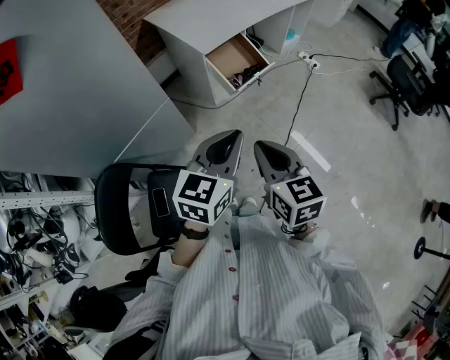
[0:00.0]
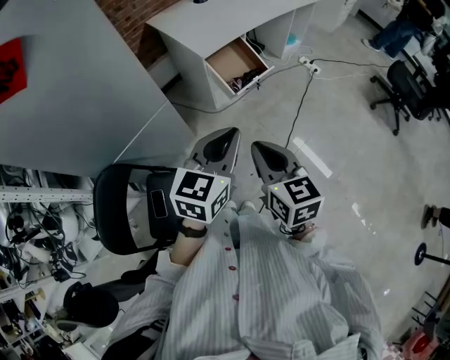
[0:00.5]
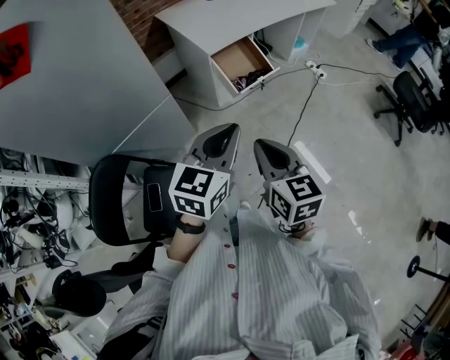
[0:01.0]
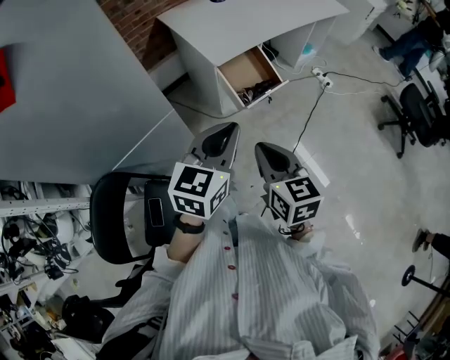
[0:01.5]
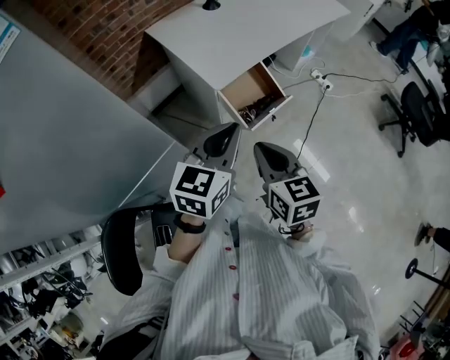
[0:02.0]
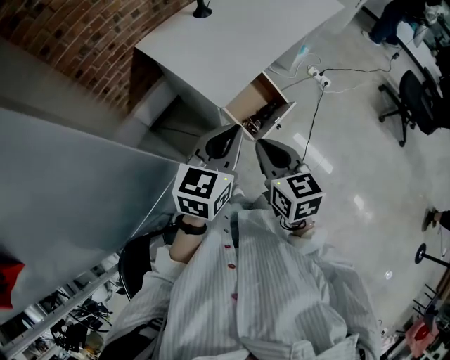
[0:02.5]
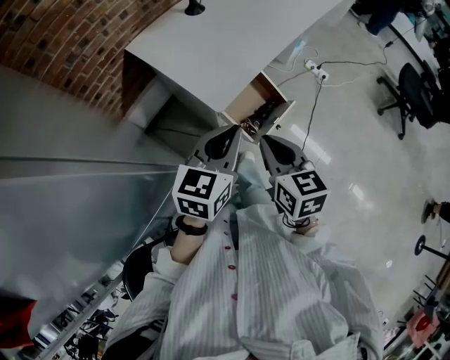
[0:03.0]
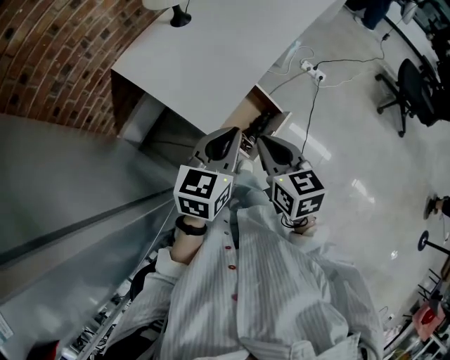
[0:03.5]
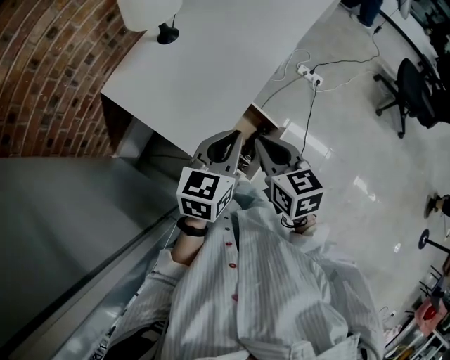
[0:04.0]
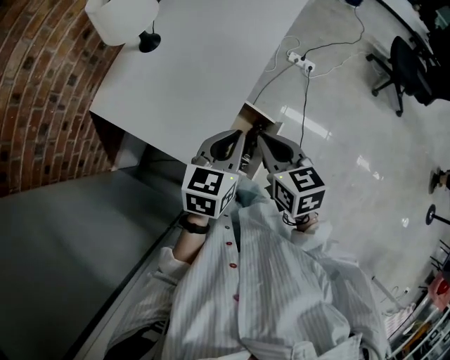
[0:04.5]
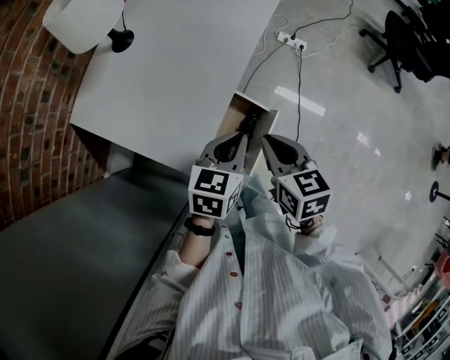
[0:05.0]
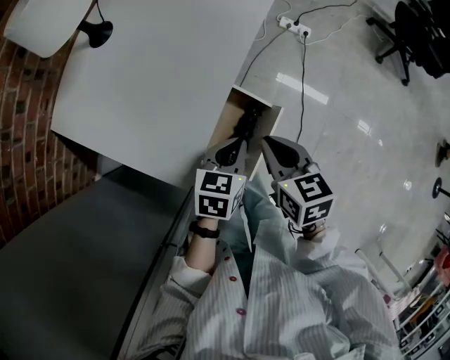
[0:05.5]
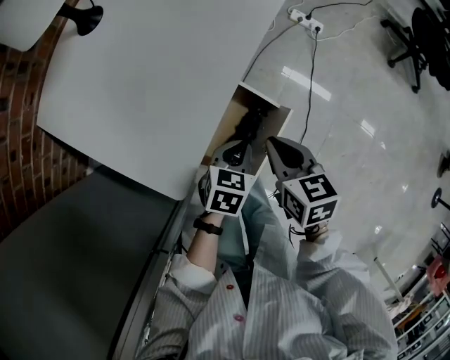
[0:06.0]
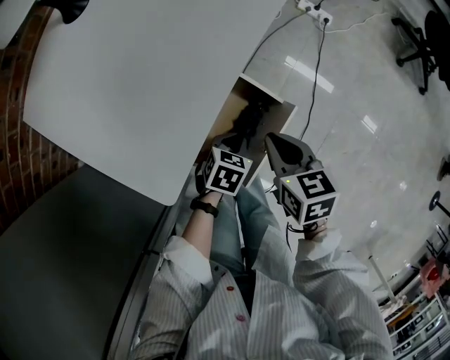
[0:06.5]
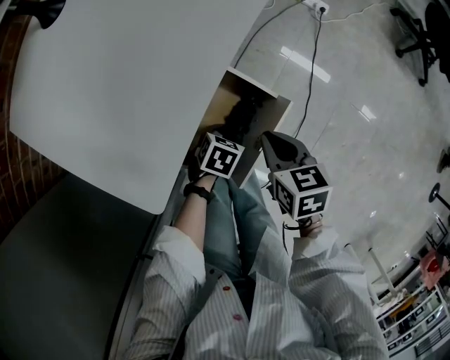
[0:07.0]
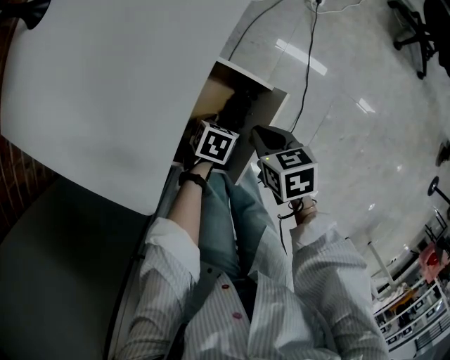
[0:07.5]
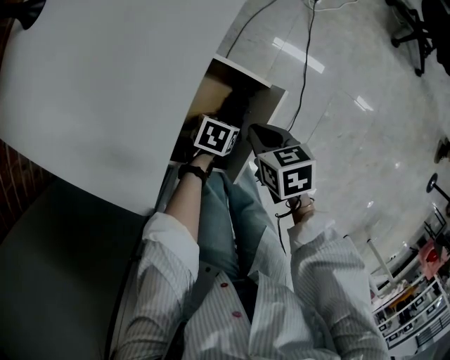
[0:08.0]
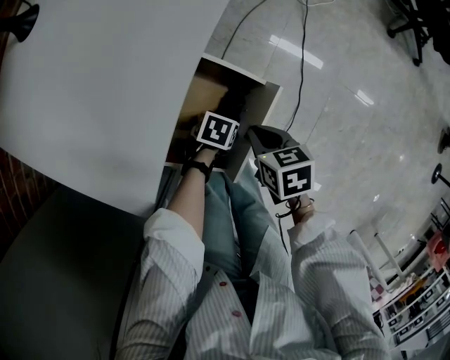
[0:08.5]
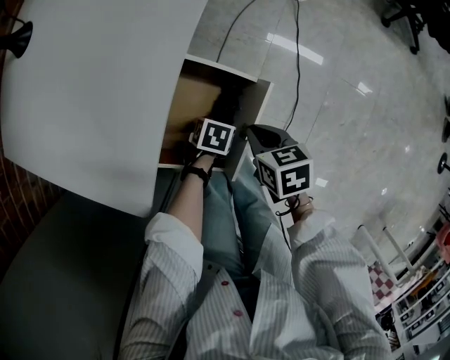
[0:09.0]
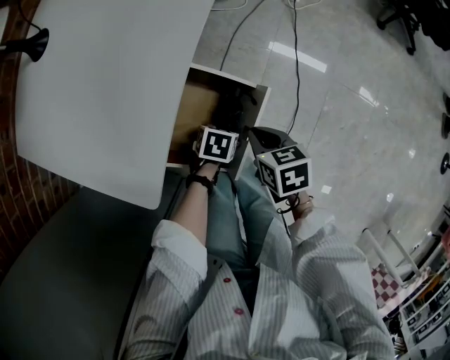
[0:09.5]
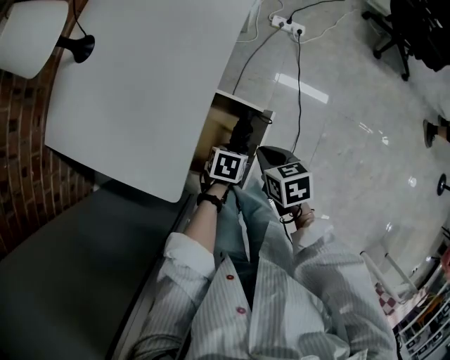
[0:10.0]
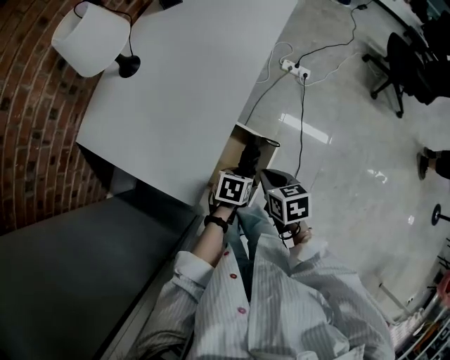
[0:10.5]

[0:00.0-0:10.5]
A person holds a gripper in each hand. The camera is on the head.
0.0 to 2.0 s: The grippers both shift forward by approximately 25 cm.
2.0 to 4.0 s: Both grippers move forward, some 30 cm.
4.0 to 6.5 s: The left gripper shifts about 40 cm downward, and tips its fingers downward by about 40 degrees; the right gripper heads downward, covering approximately 30 cm, and rotates approximately 20 degrees.
6.5 to 8.5 s: The two grippers go some 10 cm downward. The left gripper opens.
8.5 to 10.5 s: Both grippers move upward, about 25 cm.

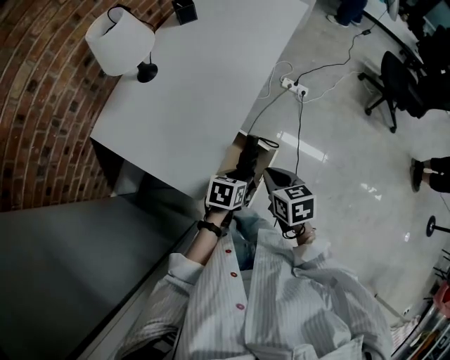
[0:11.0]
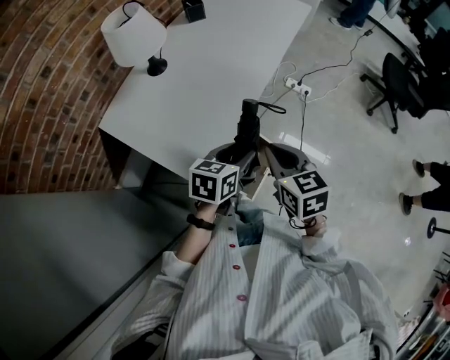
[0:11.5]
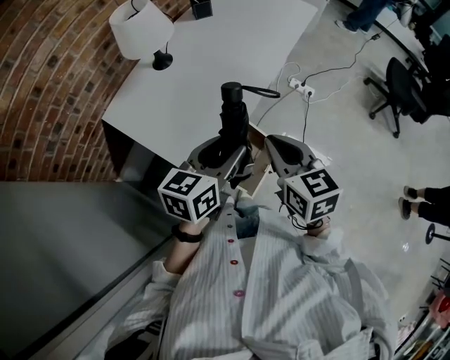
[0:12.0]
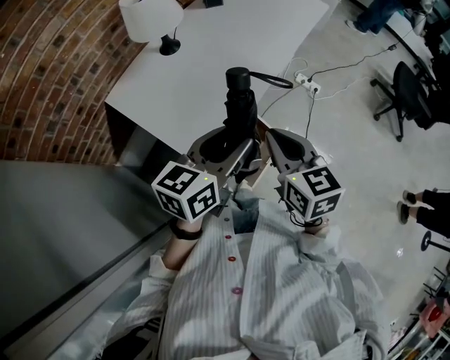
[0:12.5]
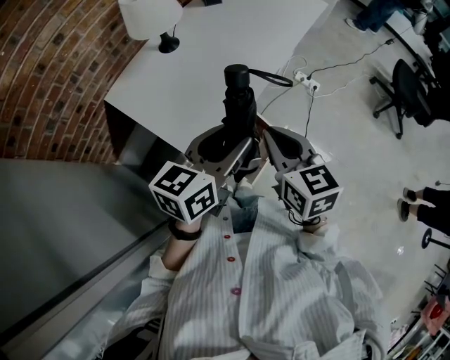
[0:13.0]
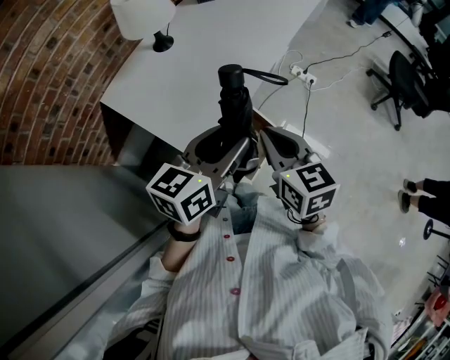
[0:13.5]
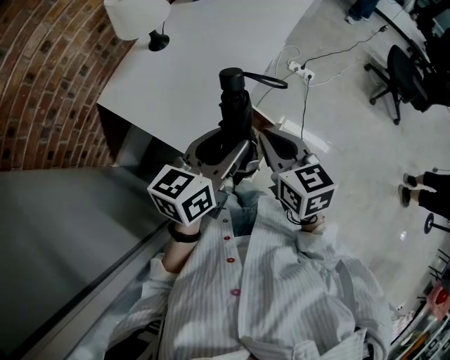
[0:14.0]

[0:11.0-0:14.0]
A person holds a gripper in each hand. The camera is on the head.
11.0 to 12.5 s: The left gripper heads upward, covering about 25 cm, and points its fingers about 40 degrees further upward. The right gripper heads upward, covering roughly 15 cm, and turns by roughly 20 degrees.
12.5 to 14.0 s: The grippers stay close to where they were, moving slightly.

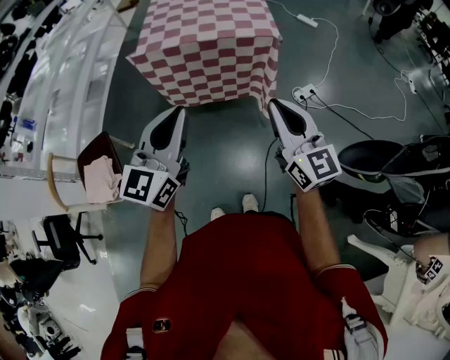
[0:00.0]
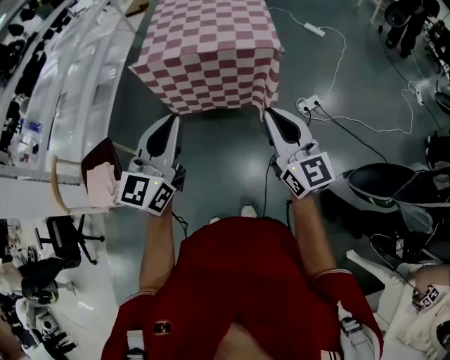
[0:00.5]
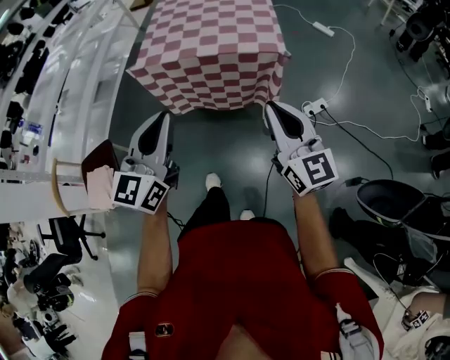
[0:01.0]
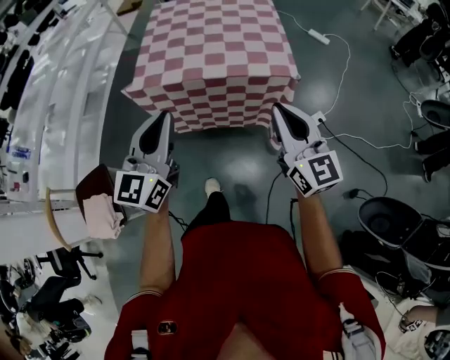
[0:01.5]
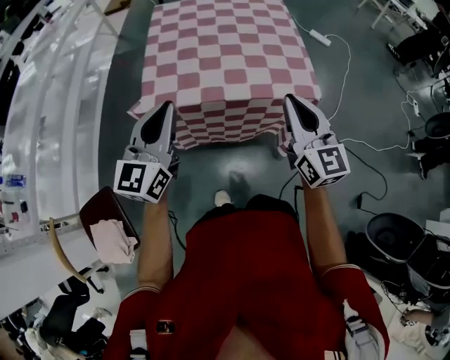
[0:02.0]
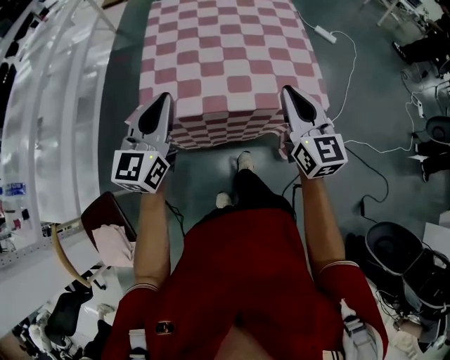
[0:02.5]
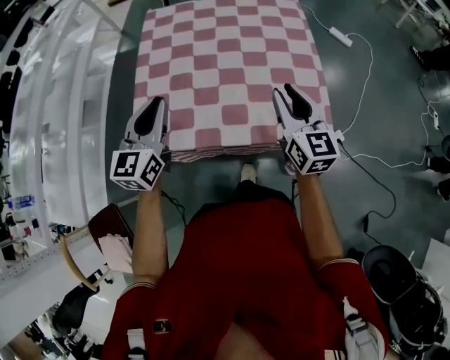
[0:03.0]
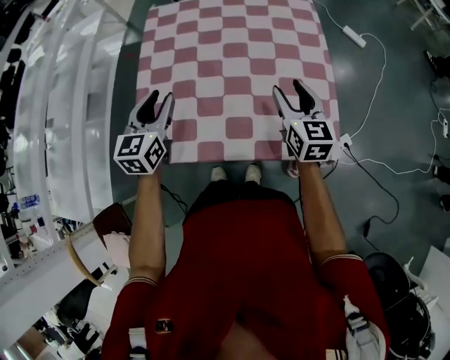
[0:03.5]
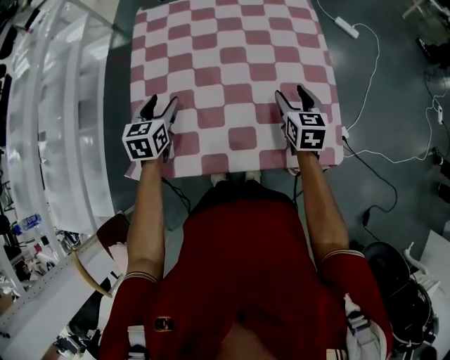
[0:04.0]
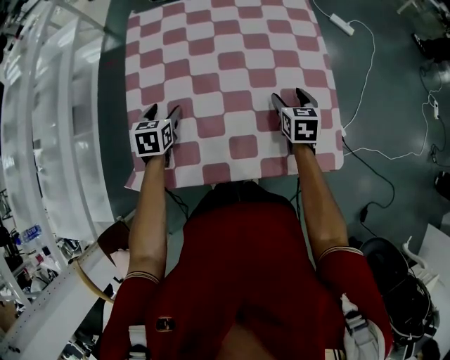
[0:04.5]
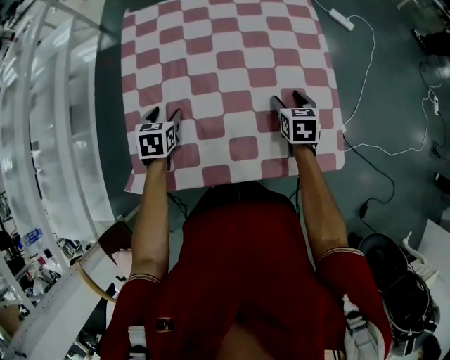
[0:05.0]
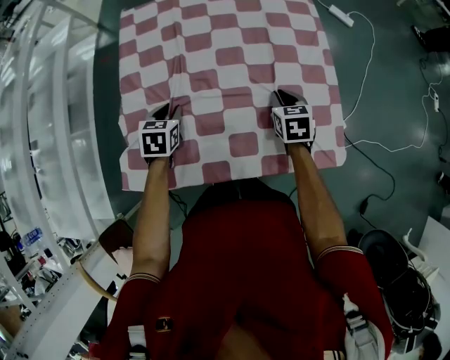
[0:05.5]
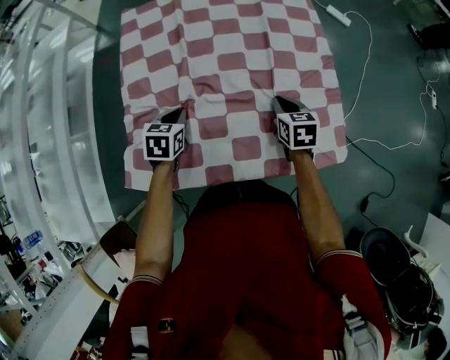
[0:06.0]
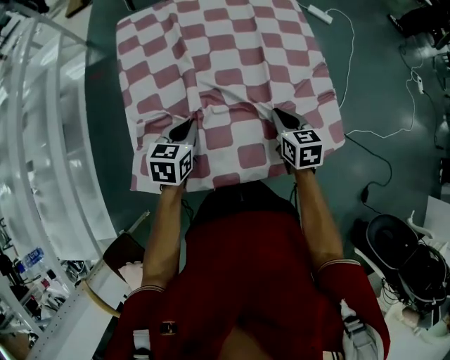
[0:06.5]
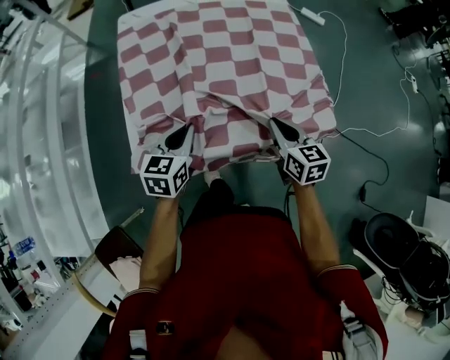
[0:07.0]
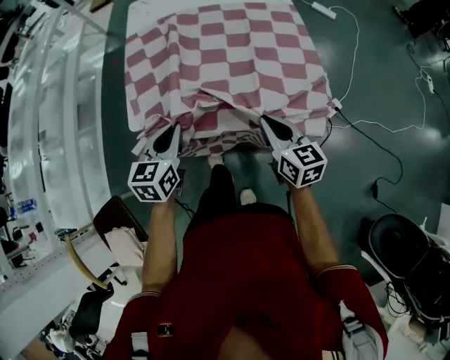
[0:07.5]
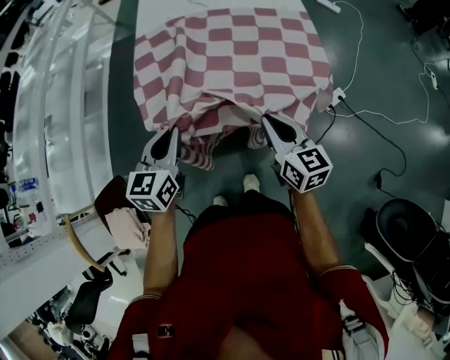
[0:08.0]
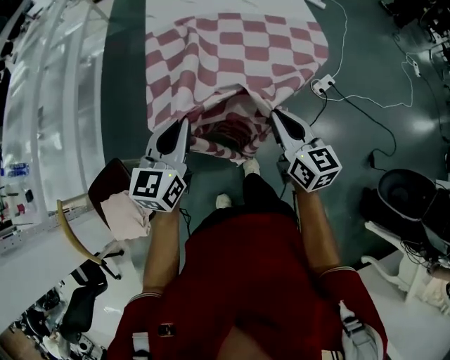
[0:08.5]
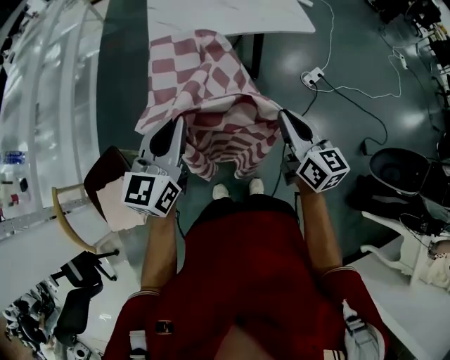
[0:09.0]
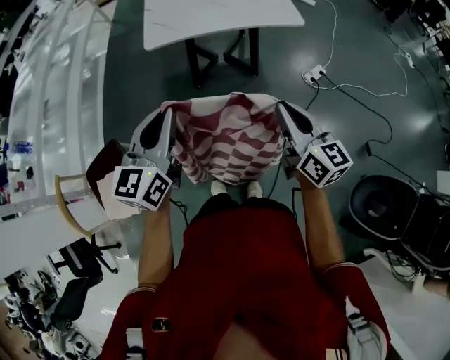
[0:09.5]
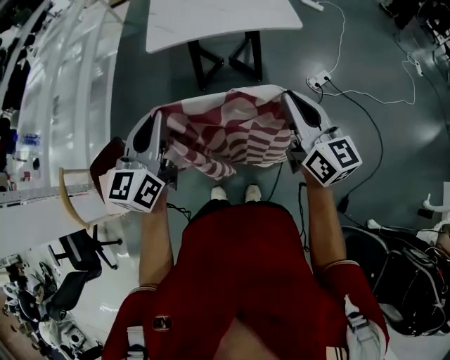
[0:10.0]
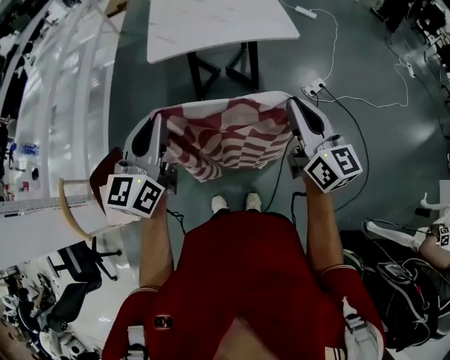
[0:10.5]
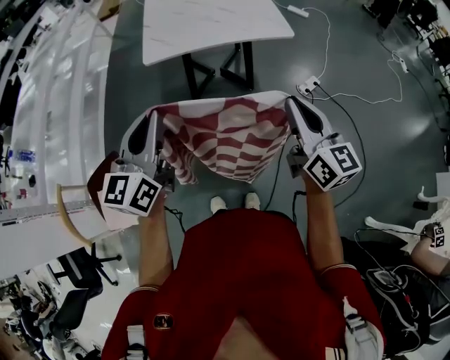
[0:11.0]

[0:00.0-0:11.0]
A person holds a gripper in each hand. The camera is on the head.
0.0 to 2.0 s: The grippers both shift forward by about 35 cm.
2.0 to 3.5 s: The left gripper shifts approximately 30 cm forward, turns by approximately 30 degrees, and opens, while the right gripper goes about 35 cm forward and downward, rotates some 20 degrees, and opens its fingers.
3.5 to 5.5 s: The grippers both shift downward by approximately 15 cm. The right gripper points its fingers some 30 degrees further downward, and closes its fingers, while the left gripper angles its fingers downward, by approximately 30 degrees, and opens and closes again.
5.5 to 7.5 s: The right gripper heads backward, covering approximately 30 cm, and tips its fingers upward by some 30 degrees; the left gripper travels backward and upward by some 30 cm, and changes its angle by approximately 30 degrees.
7.5 to 9.0 s: The right gripper goes about 30 cm backward. The left gripper goes about 35 cm backward and upward, and turns by approximately 20 degrees.
9.0 to 11.0 s: The right gripper goes approximately 15 cm upward and to the right, while the left gripper shifts roughly 10 cm upward.

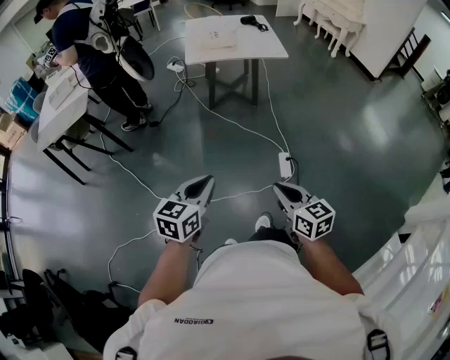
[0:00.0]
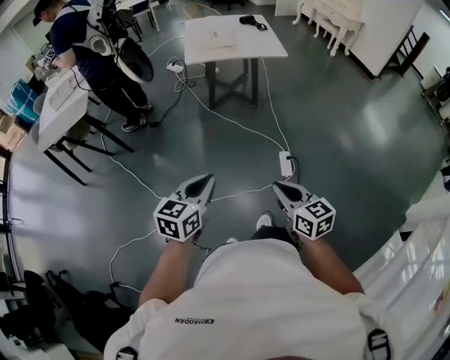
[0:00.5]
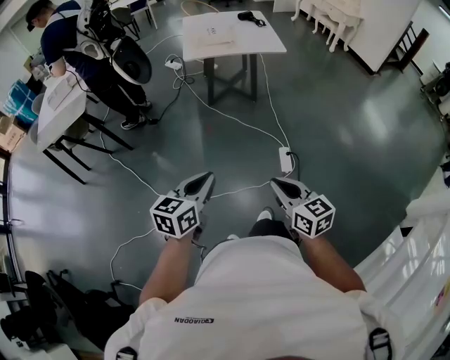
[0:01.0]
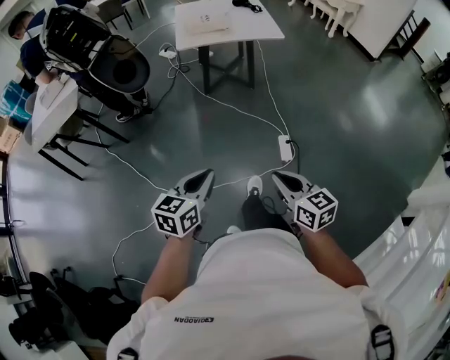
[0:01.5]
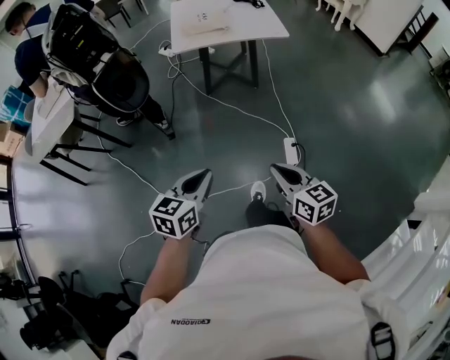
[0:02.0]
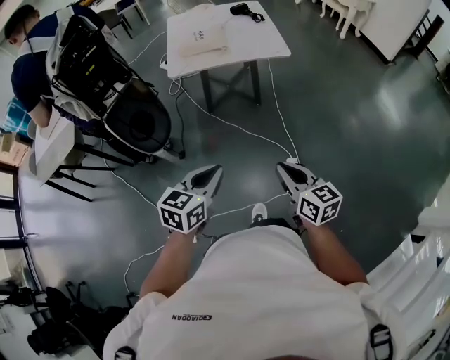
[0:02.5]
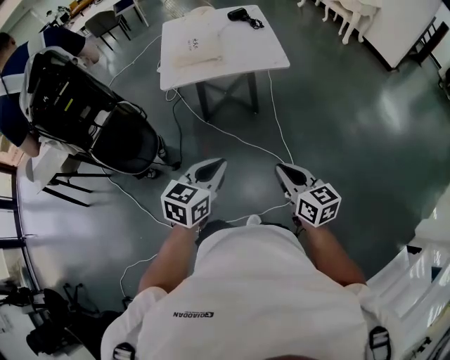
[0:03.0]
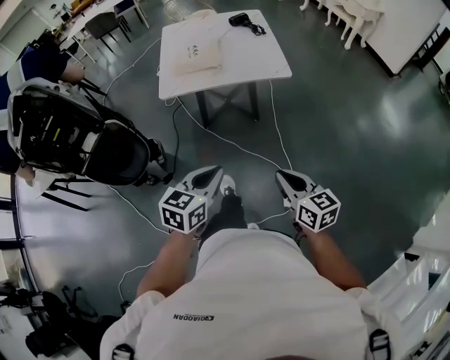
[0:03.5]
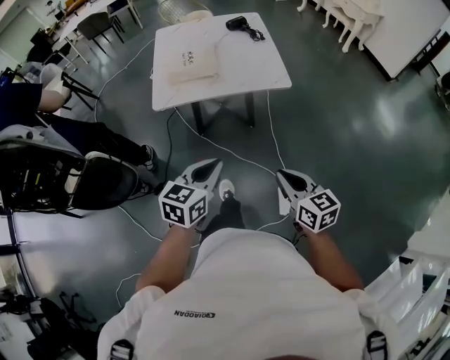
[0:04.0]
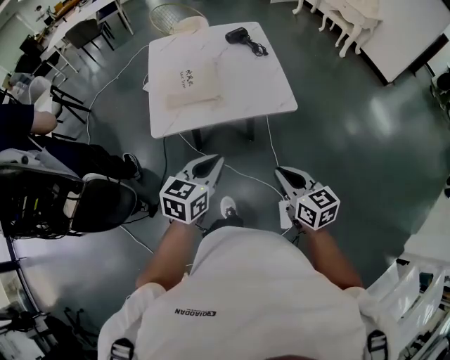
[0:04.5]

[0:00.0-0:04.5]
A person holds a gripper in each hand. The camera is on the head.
0.0 to 2.0 s: Both grippers travel together forward, some 15 cm.
2.0 to 4.5 s: The pair of grippers is taken forward, about 60 cm.
